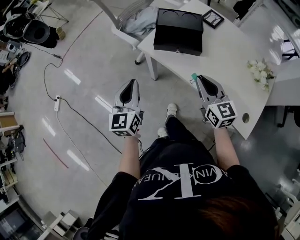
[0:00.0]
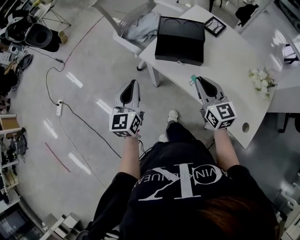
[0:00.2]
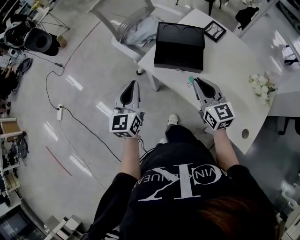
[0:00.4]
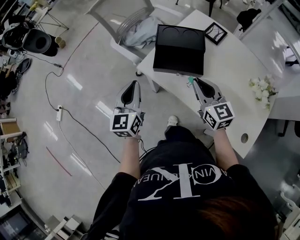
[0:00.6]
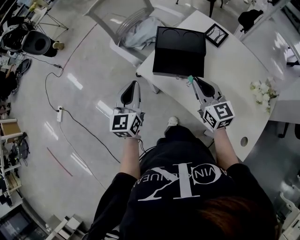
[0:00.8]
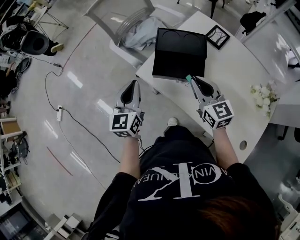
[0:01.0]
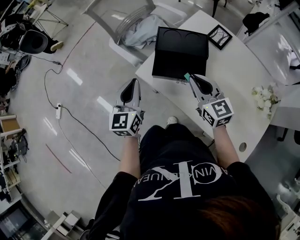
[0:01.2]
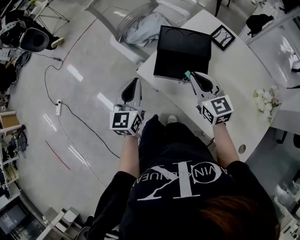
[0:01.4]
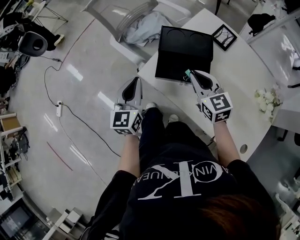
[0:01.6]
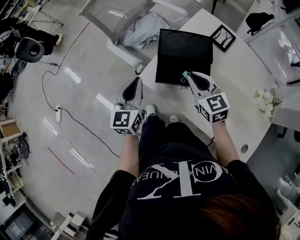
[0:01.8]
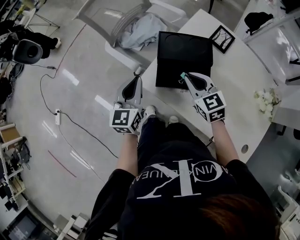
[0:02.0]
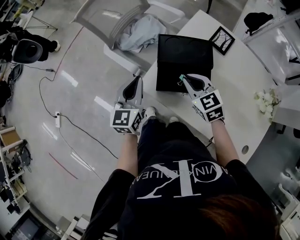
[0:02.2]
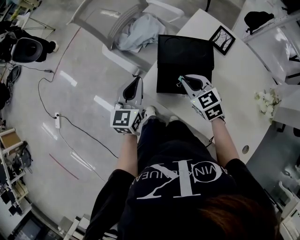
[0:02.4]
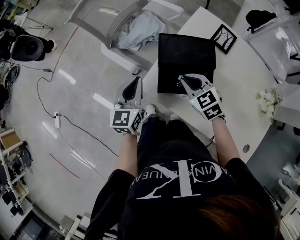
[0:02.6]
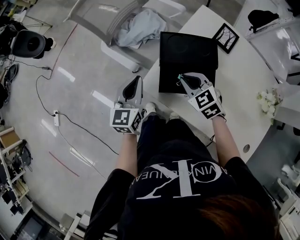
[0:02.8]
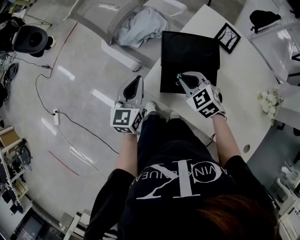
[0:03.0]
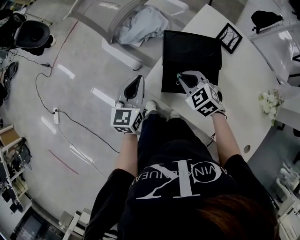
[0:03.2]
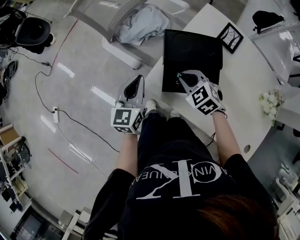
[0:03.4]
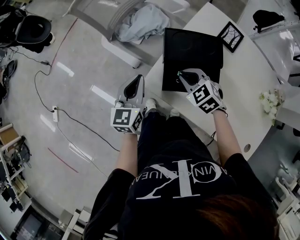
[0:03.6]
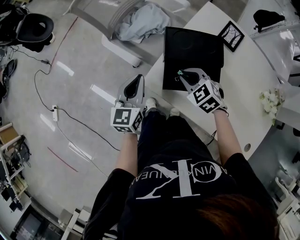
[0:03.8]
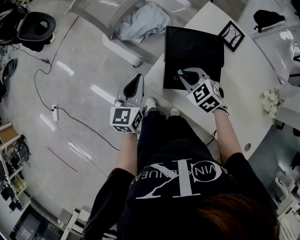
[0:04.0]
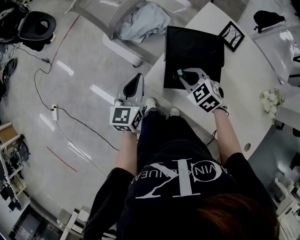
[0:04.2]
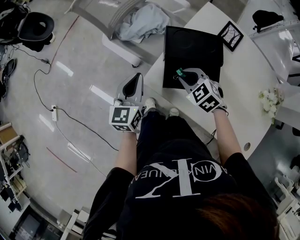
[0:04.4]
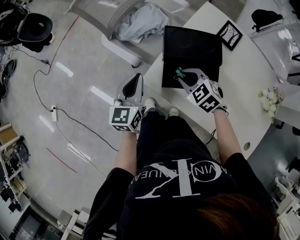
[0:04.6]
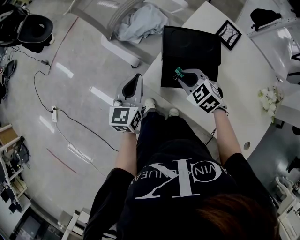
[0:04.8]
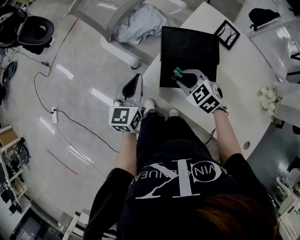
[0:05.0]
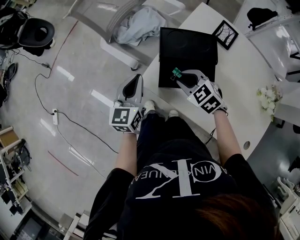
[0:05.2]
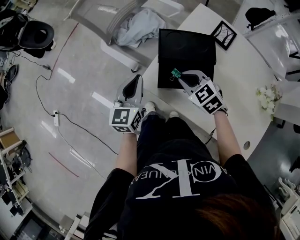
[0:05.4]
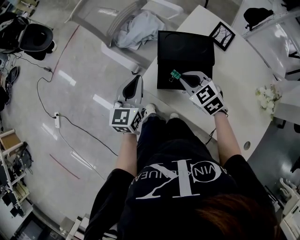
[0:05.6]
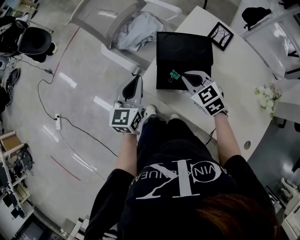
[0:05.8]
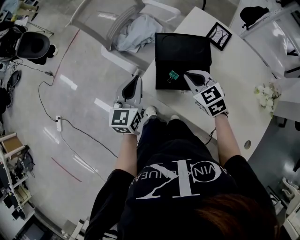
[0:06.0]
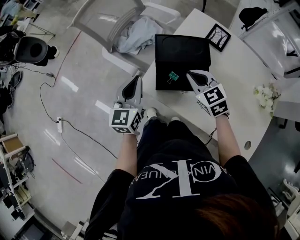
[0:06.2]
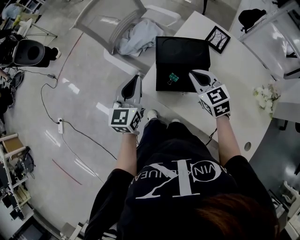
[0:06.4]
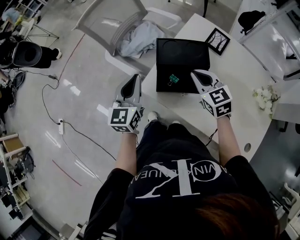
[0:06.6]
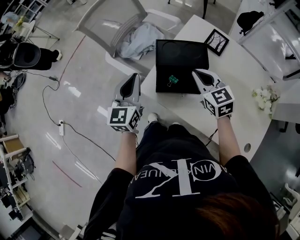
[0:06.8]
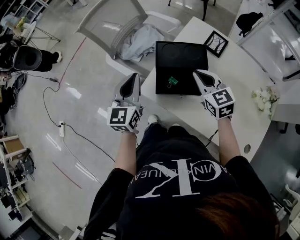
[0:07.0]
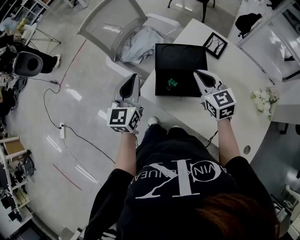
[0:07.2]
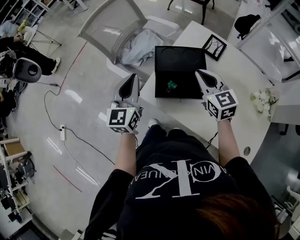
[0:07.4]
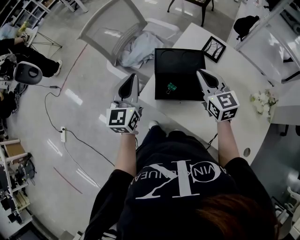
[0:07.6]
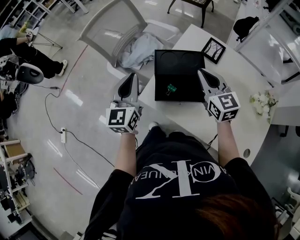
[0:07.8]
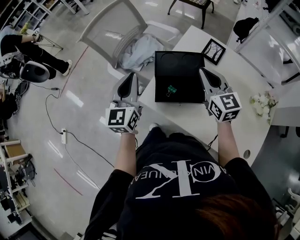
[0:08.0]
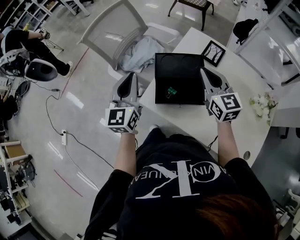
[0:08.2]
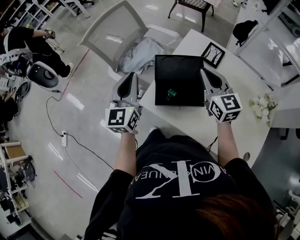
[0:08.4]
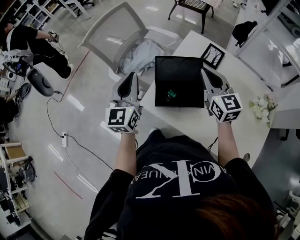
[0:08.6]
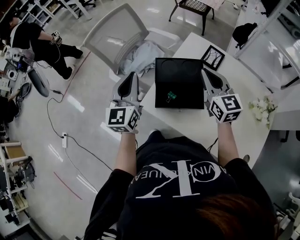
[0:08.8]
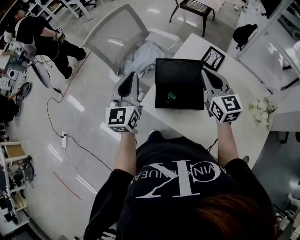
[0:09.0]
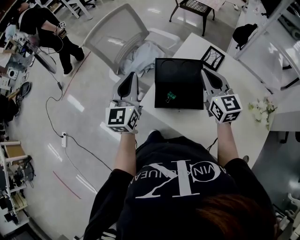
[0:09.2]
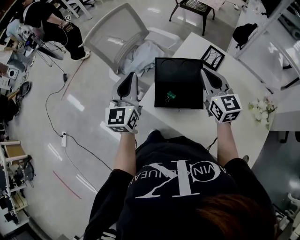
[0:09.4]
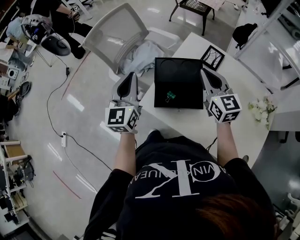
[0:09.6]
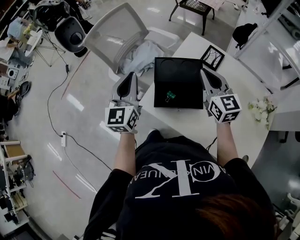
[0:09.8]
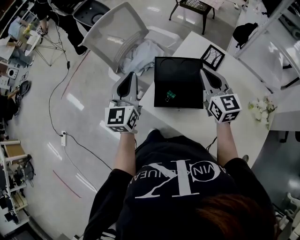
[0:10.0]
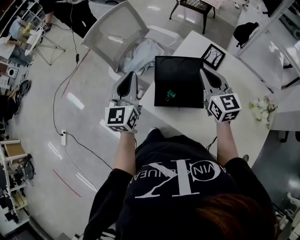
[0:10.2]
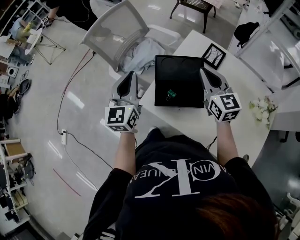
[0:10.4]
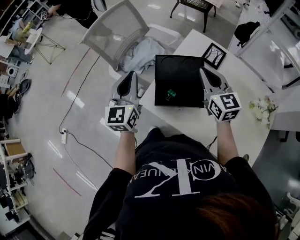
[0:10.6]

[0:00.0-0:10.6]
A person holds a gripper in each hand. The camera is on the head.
0:00.0 to 0:01.6: The two grippers go about 20 cm forward.
0:01.6 to 0:03.0: The left gripper shifts approximately 10 cm forward; the right gripper moves downward, forward and to the left, about 10 cm, and changes its angle by some 30 degrees.
0:03.0 to 0:04.6: The grippers stay close to where they were, moving slightly.
0:04.6 to 0:06.0: The right gripper is displaced upward and to the right by about 10 cm, and turns by about 20 degrees.
0:06.0 to 0:07.6: The right gripper is displaced upward and to the right by about 10 cm, and rotates approximately 30 degrees. The left gripper goes about 10 cm upward.
0:07.6 to 0:09.0: The right gripper changes place by some 5 cm.
0:09.0 to 0:10.6: There are only small adjustments of the grippers.

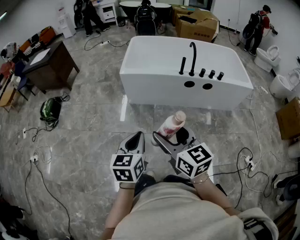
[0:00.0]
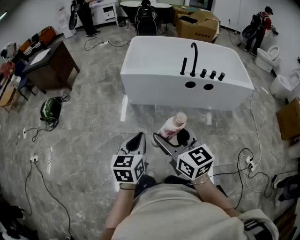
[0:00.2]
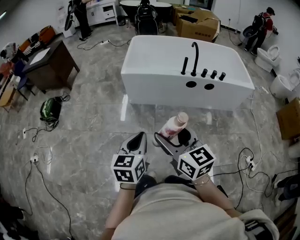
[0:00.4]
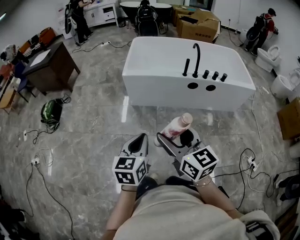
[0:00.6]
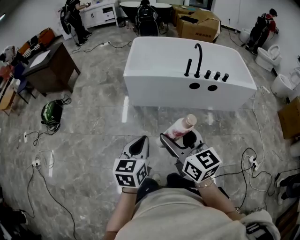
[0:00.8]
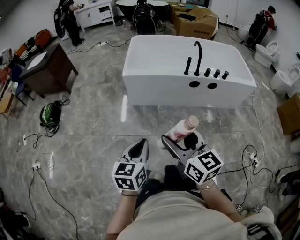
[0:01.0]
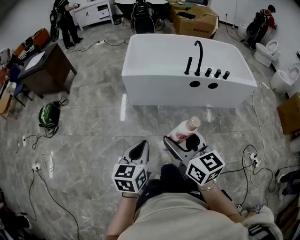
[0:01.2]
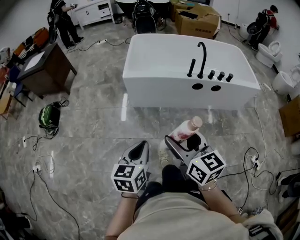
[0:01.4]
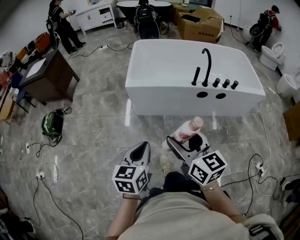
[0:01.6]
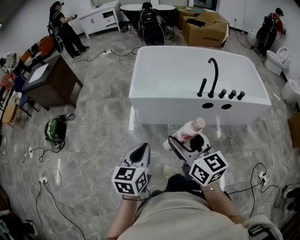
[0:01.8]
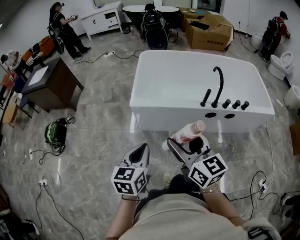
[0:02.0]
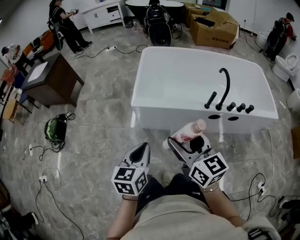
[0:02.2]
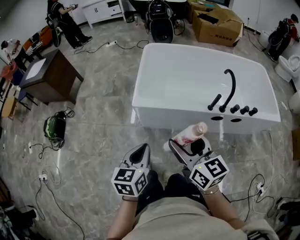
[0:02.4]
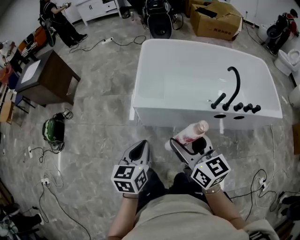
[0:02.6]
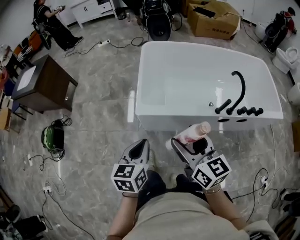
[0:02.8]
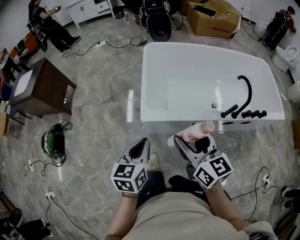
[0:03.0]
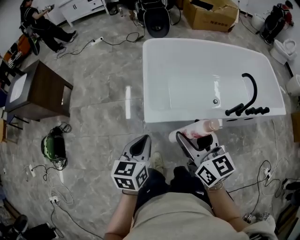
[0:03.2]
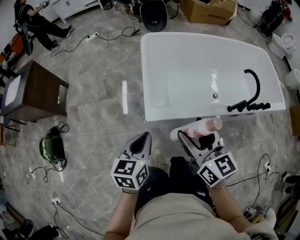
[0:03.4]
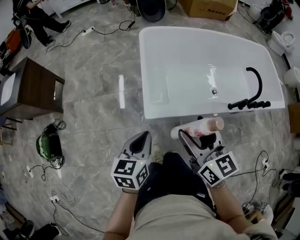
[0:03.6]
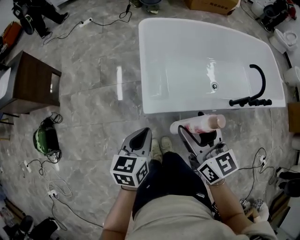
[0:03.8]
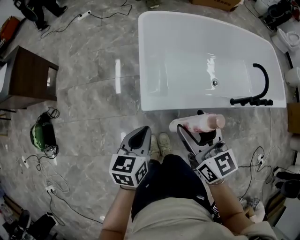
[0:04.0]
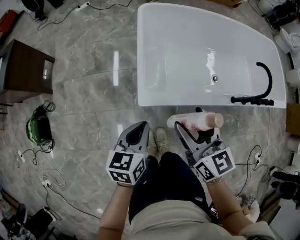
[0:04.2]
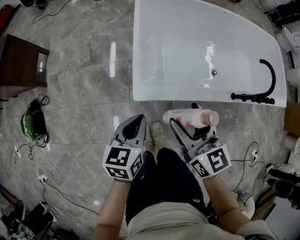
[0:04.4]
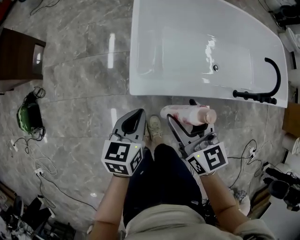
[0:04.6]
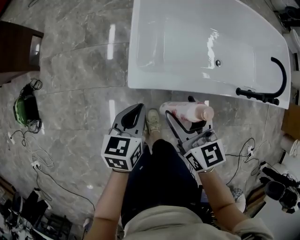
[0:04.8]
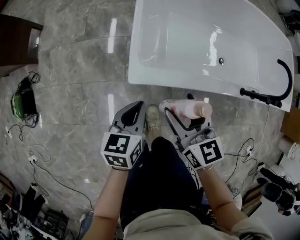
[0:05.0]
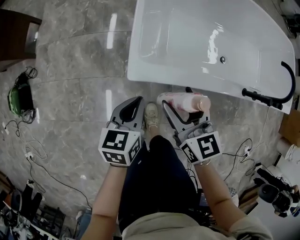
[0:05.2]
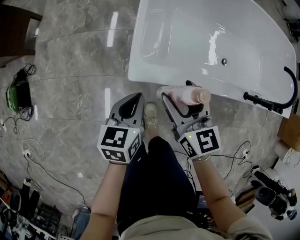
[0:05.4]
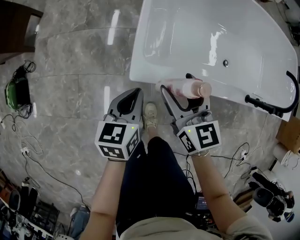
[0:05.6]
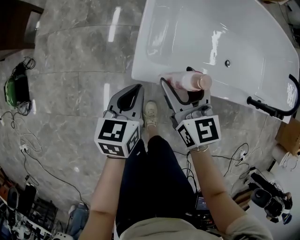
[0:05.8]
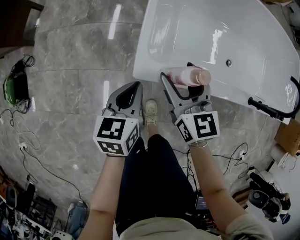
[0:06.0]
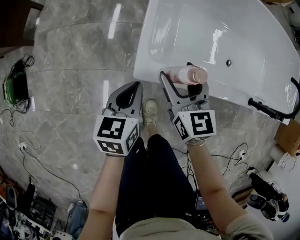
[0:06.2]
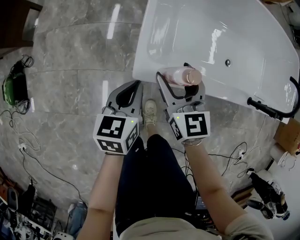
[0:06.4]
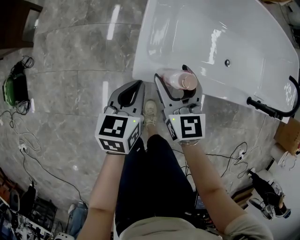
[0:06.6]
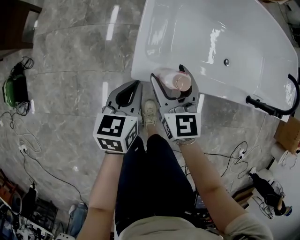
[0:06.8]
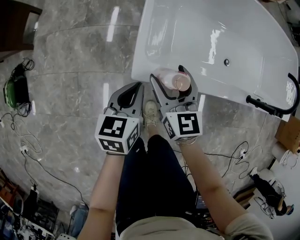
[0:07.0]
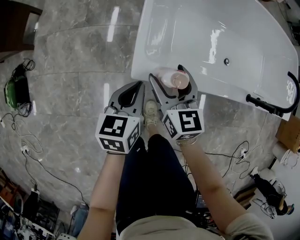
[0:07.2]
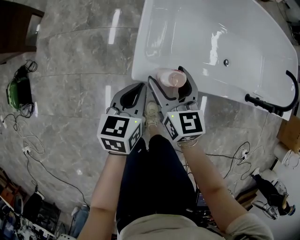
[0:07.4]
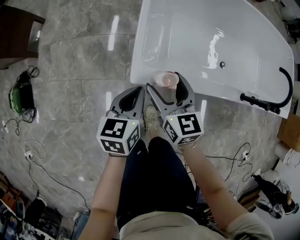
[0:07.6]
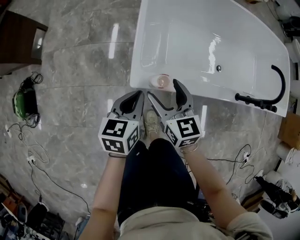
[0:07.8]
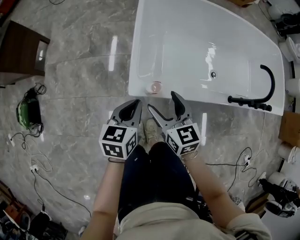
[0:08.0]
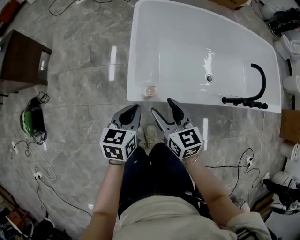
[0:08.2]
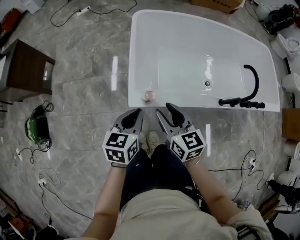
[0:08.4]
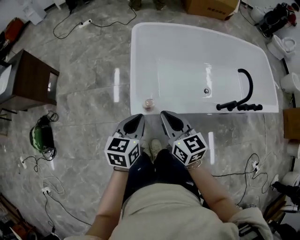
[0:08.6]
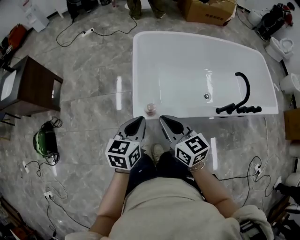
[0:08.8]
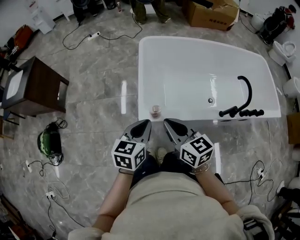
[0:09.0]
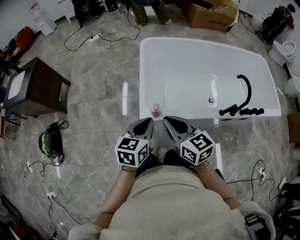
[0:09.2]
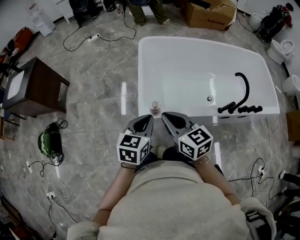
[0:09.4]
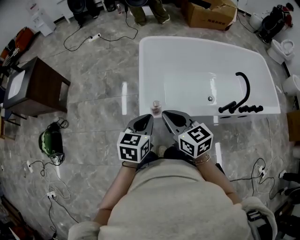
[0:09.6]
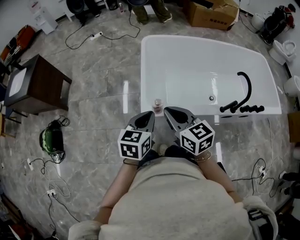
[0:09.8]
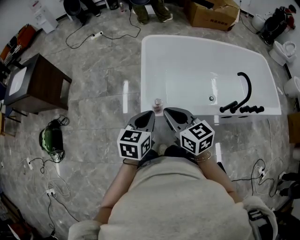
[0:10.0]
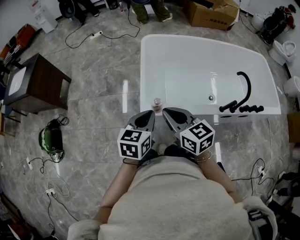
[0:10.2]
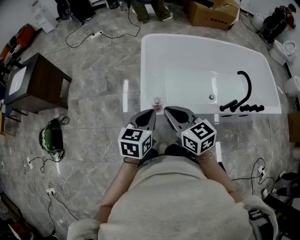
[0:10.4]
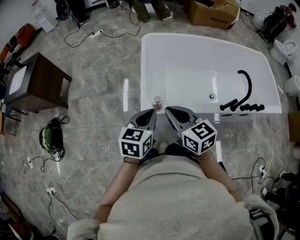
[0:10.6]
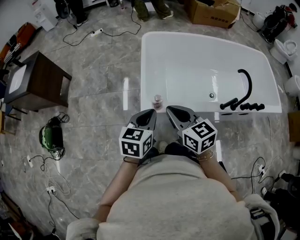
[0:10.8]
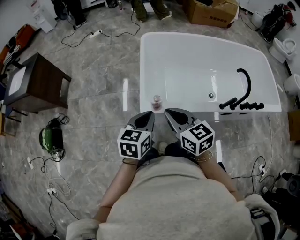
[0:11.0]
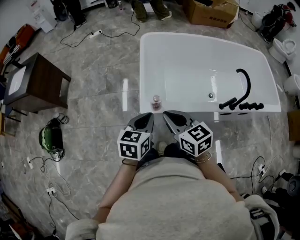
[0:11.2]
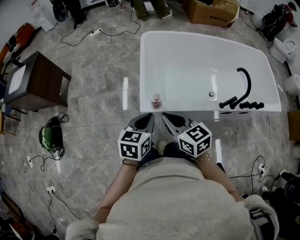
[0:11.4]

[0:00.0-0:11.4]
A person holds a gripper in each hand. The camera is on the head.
0:00.0 to 0:01.4: The right gripper moves forward, approximately 10 cm, while the left gripper shifts approximately 10 cm forward and to the left.
0:01.4 to 0:02.8: The two grippers travel together, forward, roughly 50 cm.
0:02.8 to 0:04.2: The two grippers go some 20 cm forward, downward and to the left.
0:04.2 to 0:05.6: The grippers both shift downward by about 20 cm.
0:05.6 to 0:07.2: The right gripper changes place by roughly 5 cm.
0:07.2 to 0:08.6: Both grippers travel together upward, roughly 25 cm. The right gripper closes.
0:08.6 to 0:10.0: The grippers both shift upward by about 5 cm.
0:10.0 to 0:11.4: The grippers stay close to where they were, moving slightly.

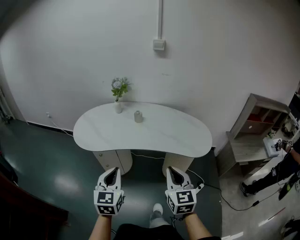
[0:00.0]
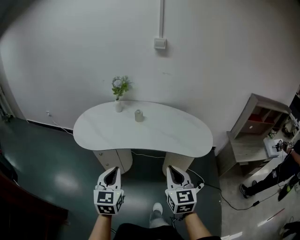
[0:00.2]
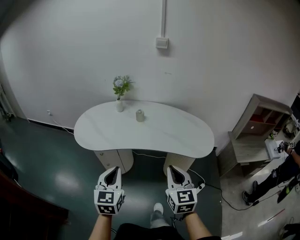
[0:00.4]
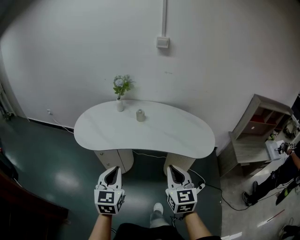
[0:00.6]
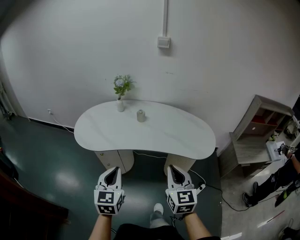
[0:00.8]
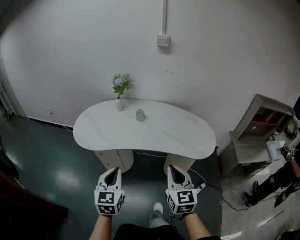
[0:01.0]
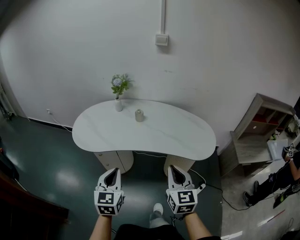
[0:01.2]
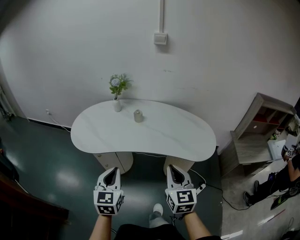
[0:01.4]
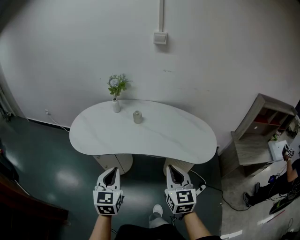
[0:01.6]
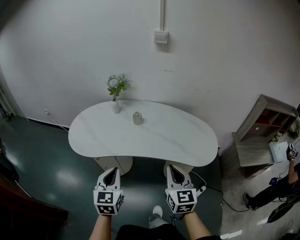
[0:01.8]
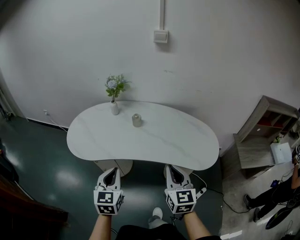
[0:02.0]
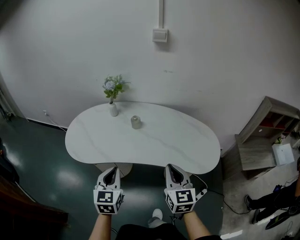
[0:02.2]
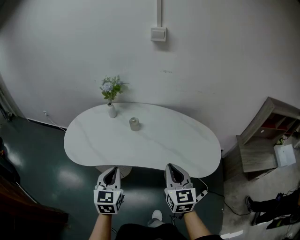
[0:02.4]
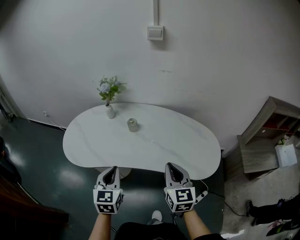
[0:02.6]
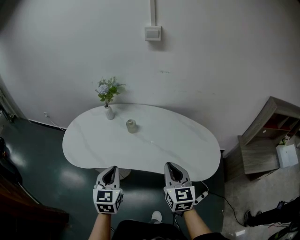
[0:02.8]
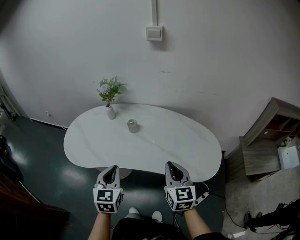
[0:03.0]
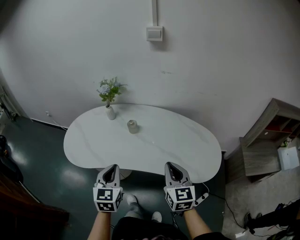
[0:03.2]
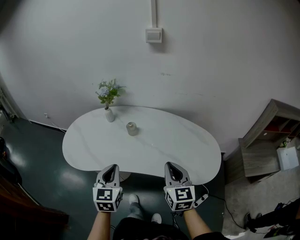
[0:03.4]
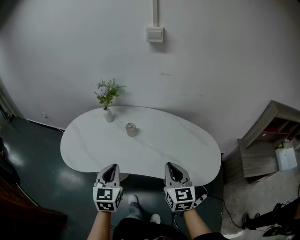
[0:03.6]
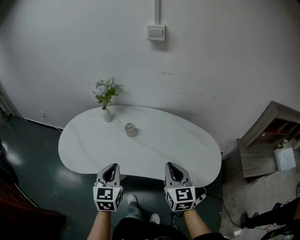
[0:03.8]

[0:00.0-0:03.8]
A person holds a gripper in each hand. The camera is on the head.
0:00.0 to 0:01.2: The grippers move only a little.
0:01.2 to 0:02.6: The grippers both shift forward by roughly 15 cm.
0:02.6 to 0:03.8: The two grippers go some 5 cm forward.
